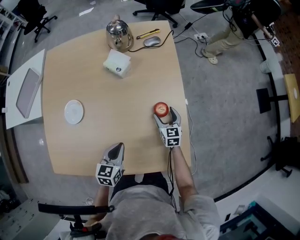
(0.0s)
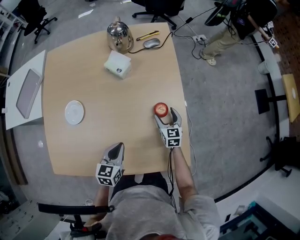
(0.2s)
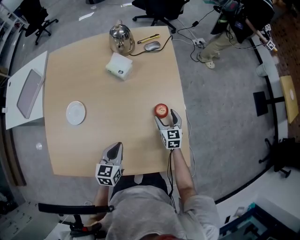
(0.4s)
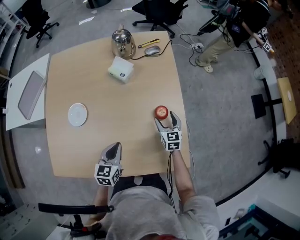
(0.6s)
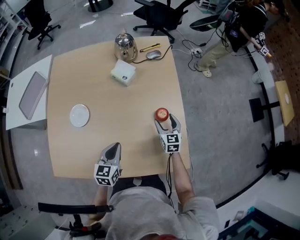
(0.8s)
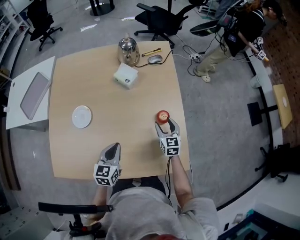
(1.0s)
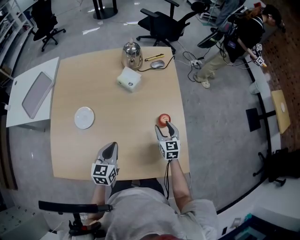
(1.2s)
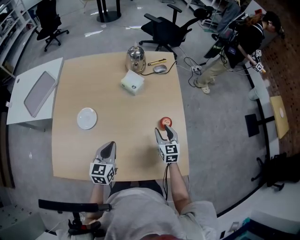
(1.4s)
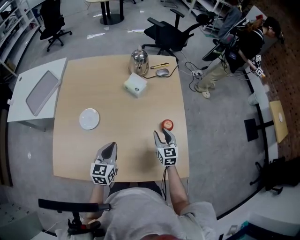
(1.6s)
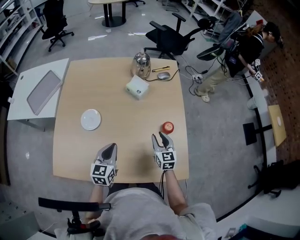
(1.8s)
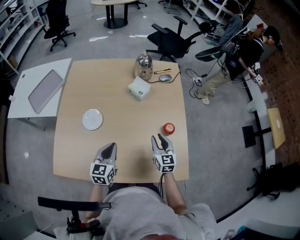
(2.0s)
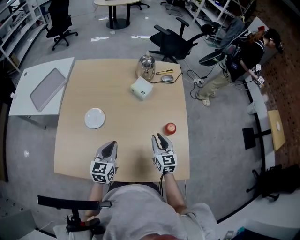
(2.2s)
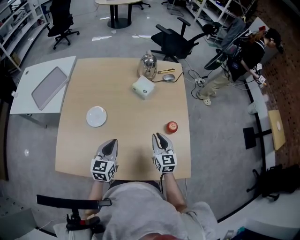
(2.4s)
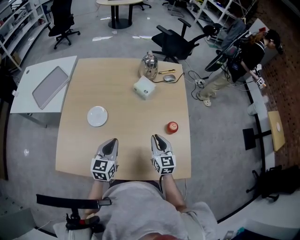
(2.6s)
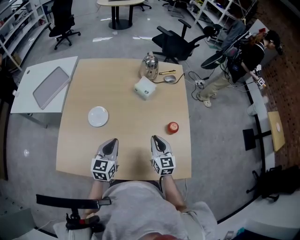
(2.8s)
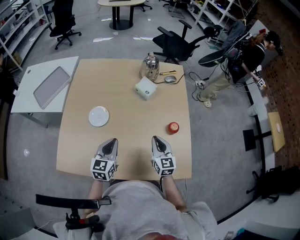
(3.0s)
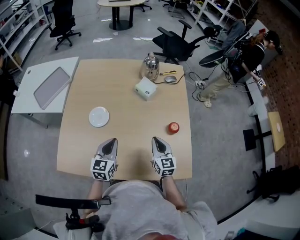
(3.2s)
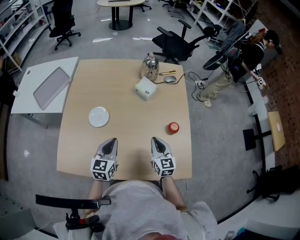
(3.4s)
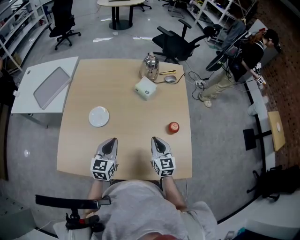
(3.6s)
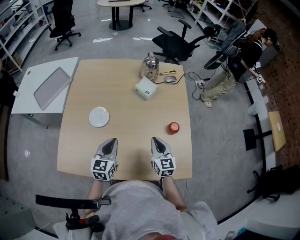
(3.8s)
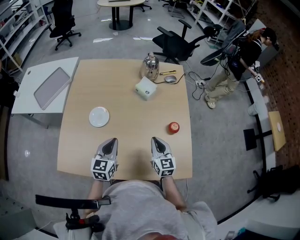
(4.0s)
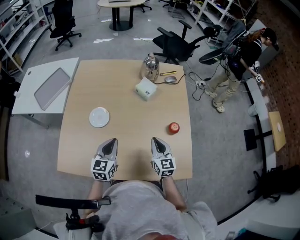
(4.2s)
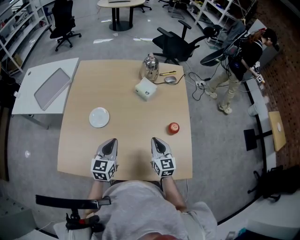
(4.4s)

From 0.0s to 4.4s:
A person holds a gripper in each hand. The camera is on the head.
From 0.0s to 1.4s: The left gripper shifts about 15 cm to the left and upward. The right gripper heads upward, to the left and backward, covering approximately 15 cm, and closes its fingers.
From 1.4s to 3.0s: The right gripper moves to the left, upward and backward, some 15 cm, and closes its fingers. Meanwhile the left gripper moves to the left, some 5 cm.
From 3.0s to 4.4s: Both grippers stay about where they are.

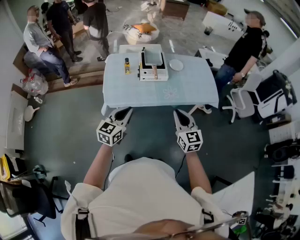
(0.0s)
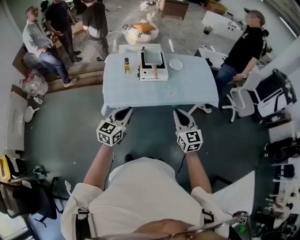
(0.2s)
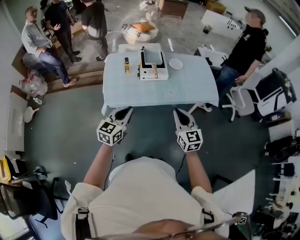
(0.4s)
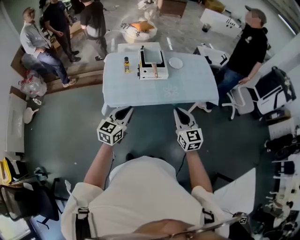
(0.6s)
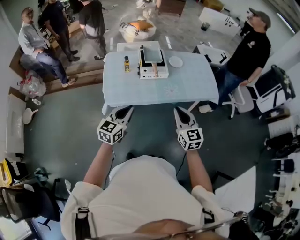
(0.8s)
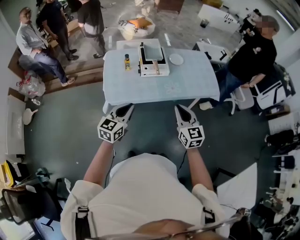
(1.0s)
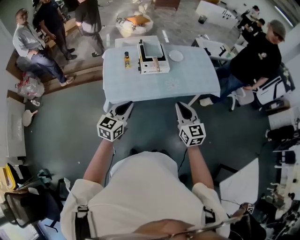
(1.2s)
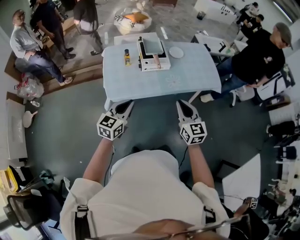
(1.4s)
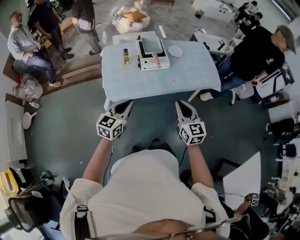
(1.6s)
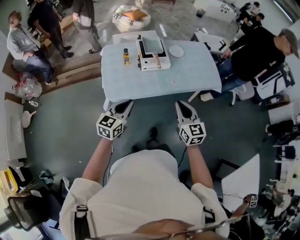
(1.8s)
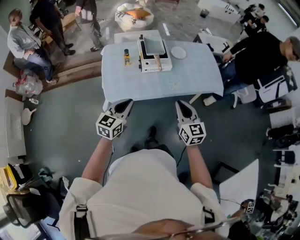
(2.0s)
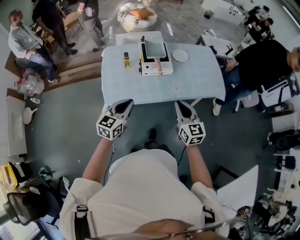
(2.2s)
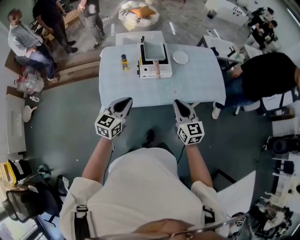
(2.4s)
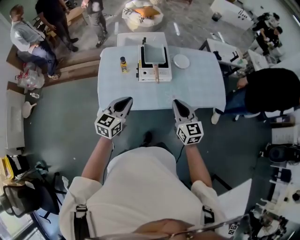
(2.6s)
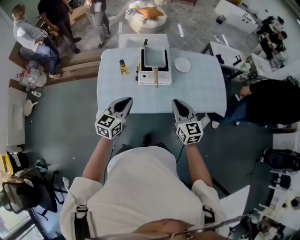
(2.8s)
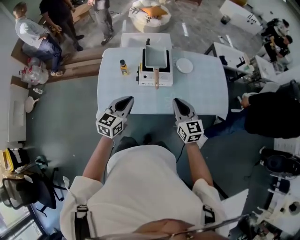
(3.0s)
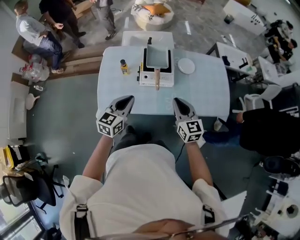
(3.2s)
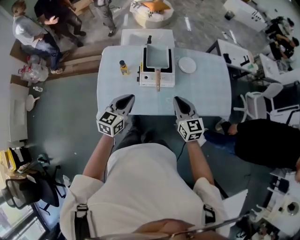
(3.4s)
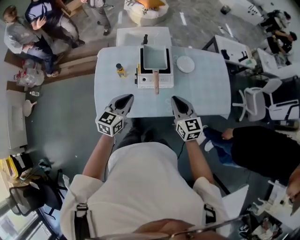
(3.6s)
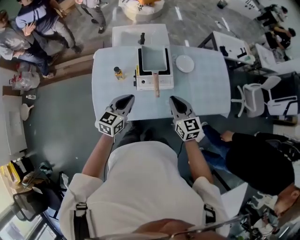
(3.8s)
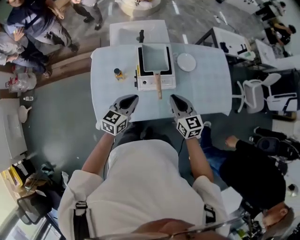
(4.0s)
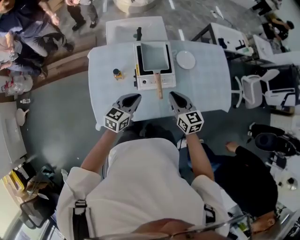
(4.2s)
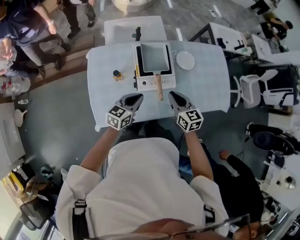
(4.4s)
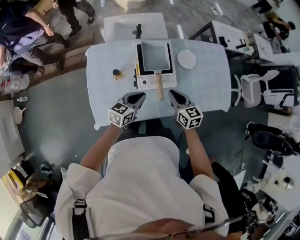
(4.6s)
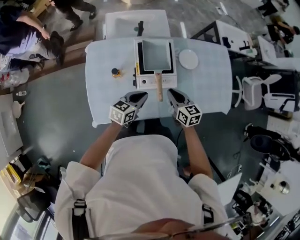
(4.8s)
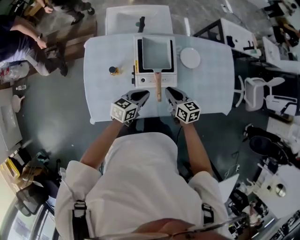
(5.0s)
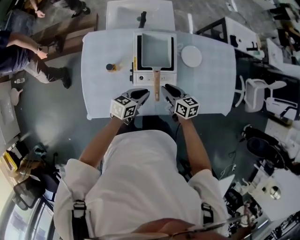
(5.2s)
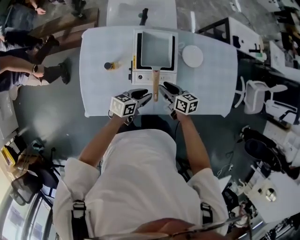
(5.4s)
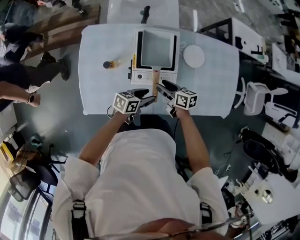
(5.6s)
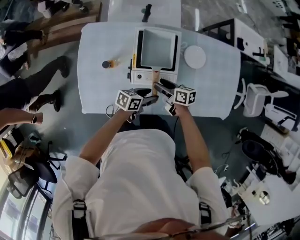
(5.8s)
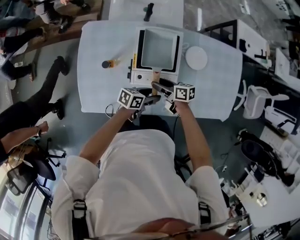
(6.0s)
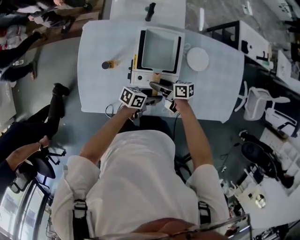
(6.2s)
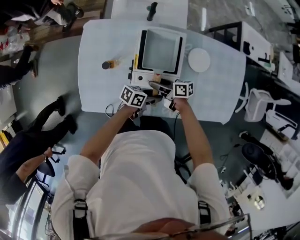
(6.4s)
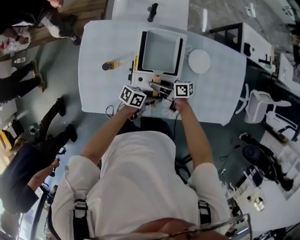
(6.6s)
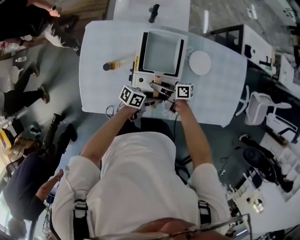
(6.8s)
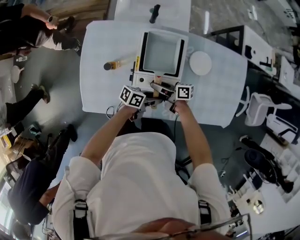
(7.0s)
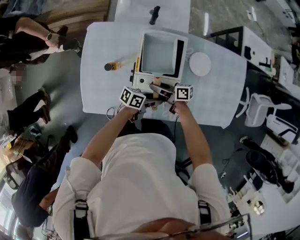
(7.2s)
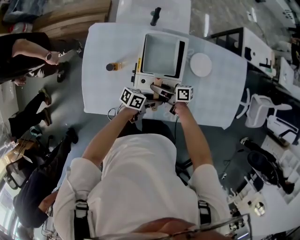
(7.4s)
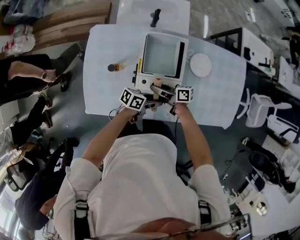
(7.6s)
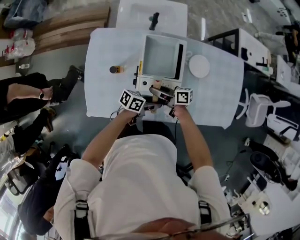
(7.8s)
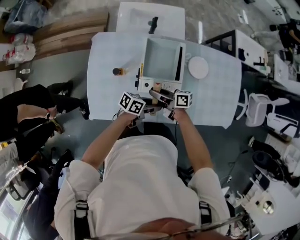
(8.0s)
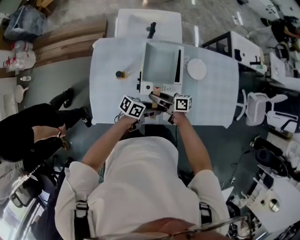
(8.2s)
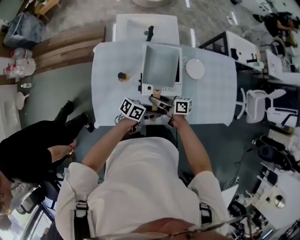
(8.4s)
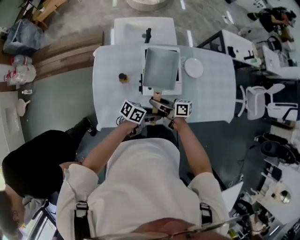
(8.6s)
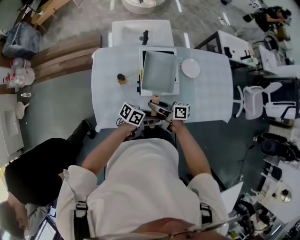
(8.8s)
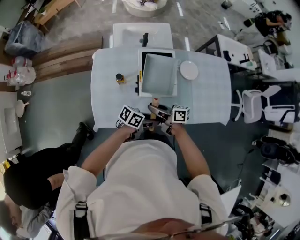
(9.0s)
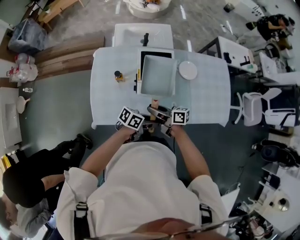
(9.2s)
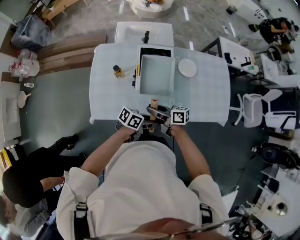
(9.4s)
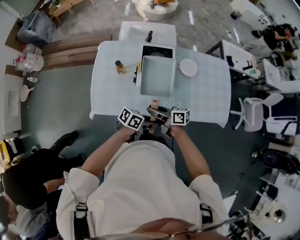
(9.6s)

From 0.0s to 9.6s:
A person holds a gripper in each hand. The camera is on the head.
From 0.0s to 1.6s: The two grippers go some 5 cm to the left.
From 1.6s to 3.2s: Both grippers travel together forward, roughly 25 cm.
From 3.2s to 4.8s: The left gripper goes about 25 cm forward and downward, and rotates roughly 30 degrees. The right gripper travels forward, downward and to the left by roughly 25 cm, and swivels approximately 20 degrees.
From 4.8s to 6.4s: The grippers both shift downward by roughly 15 cm. The right gripper swivels some 50 degrees, and opens up; the left gripper turns by roughly 40 degrees, and opens up.
From 6.4s to 8.0s: The two grippers go about 5 cm upward.
From 8.0s to 9.6s: The right gripper ends up roughly 20 cm from where it was. The left gripper shifts by about 20 cm.

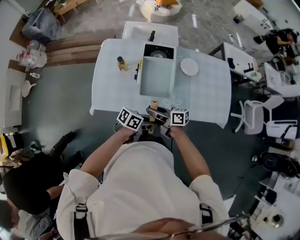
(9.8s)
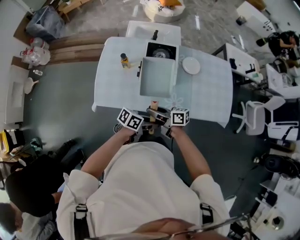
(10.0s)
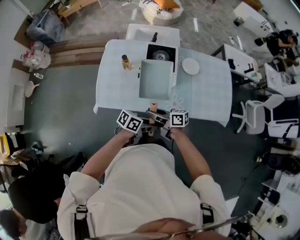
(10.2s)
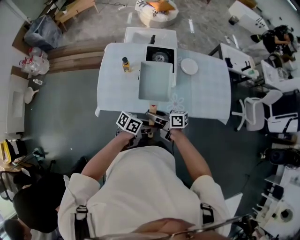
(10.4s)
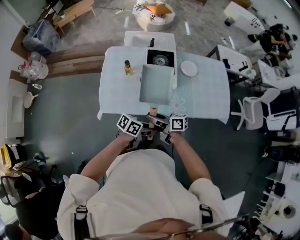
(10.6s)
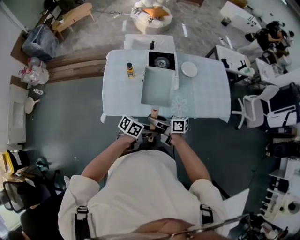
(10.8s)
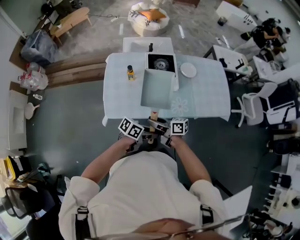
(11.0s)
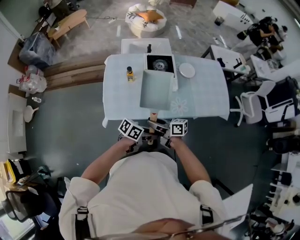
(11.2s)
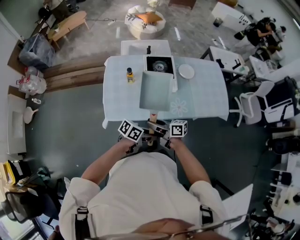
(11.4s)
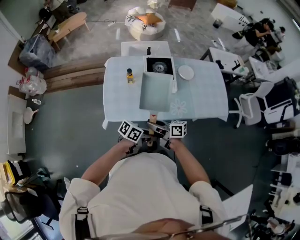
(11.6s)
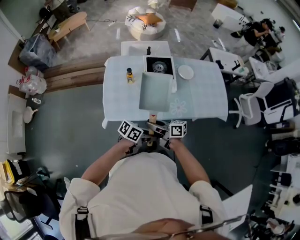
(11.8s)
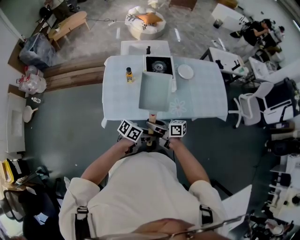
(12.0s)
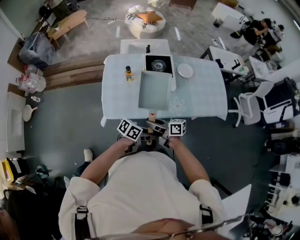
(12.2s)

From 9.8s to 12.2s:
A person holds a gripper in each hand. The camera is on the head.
From 9.8s to 11.0s: The left gripper shifts by about 15 cm; the right gripper ends up some 15 cm from where it was.
From 11.0s to 12.2s: The grippers move only a little.

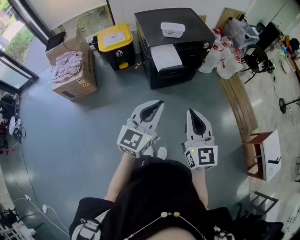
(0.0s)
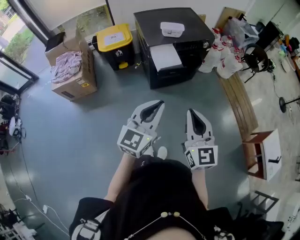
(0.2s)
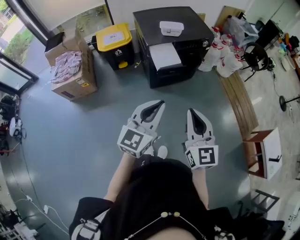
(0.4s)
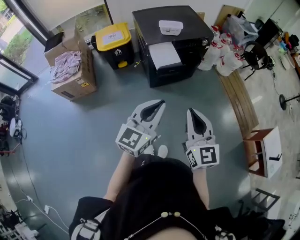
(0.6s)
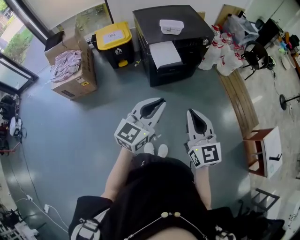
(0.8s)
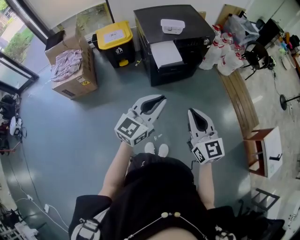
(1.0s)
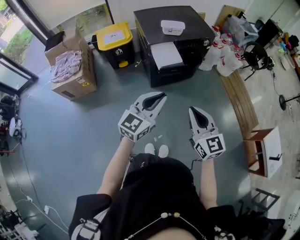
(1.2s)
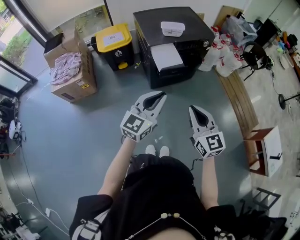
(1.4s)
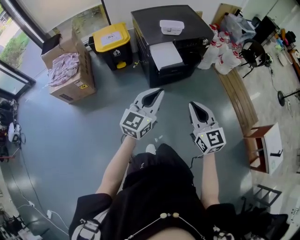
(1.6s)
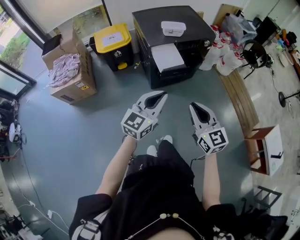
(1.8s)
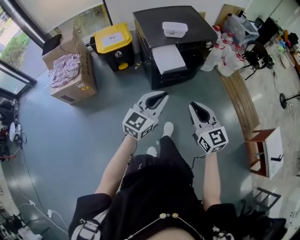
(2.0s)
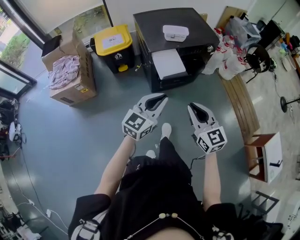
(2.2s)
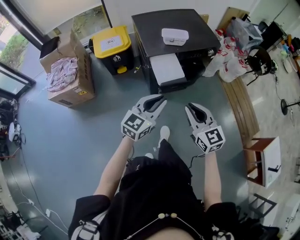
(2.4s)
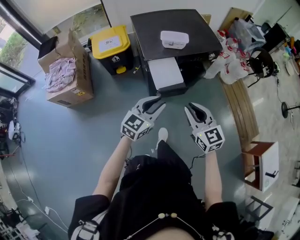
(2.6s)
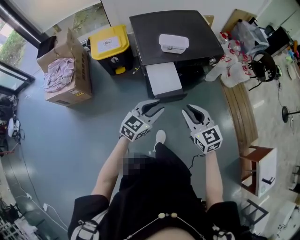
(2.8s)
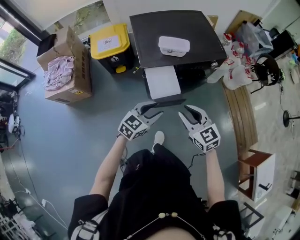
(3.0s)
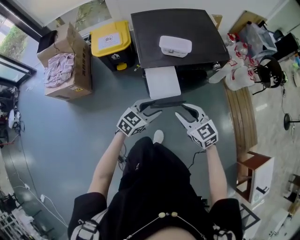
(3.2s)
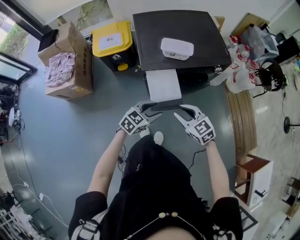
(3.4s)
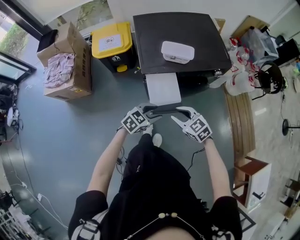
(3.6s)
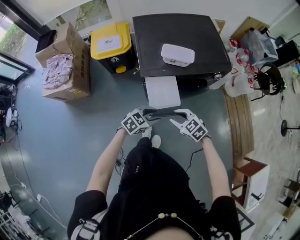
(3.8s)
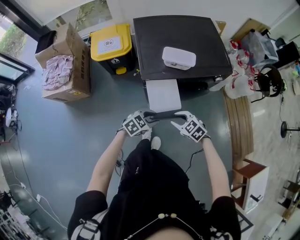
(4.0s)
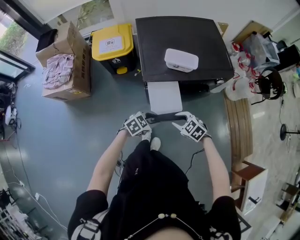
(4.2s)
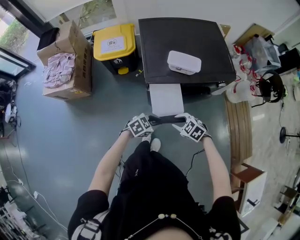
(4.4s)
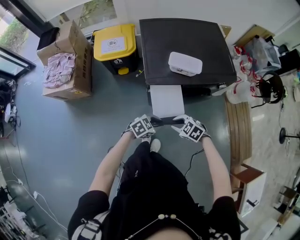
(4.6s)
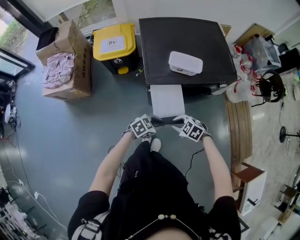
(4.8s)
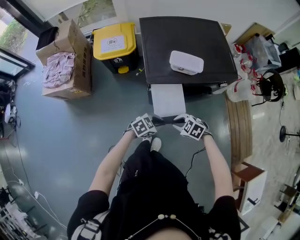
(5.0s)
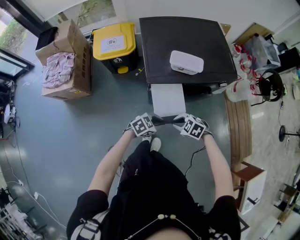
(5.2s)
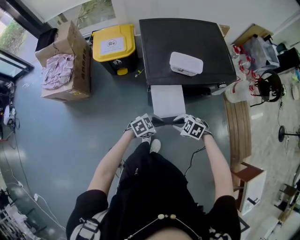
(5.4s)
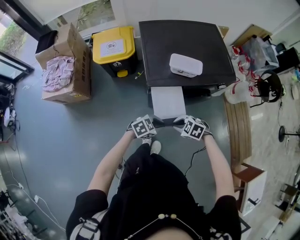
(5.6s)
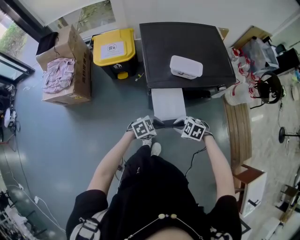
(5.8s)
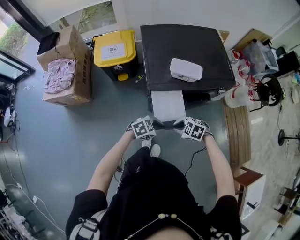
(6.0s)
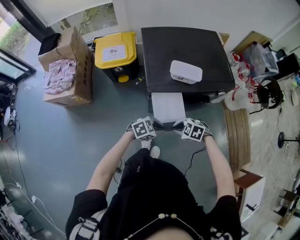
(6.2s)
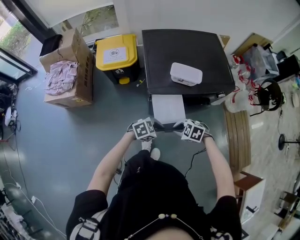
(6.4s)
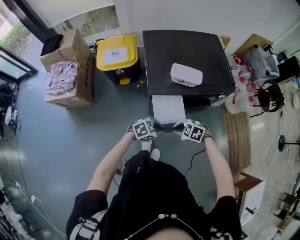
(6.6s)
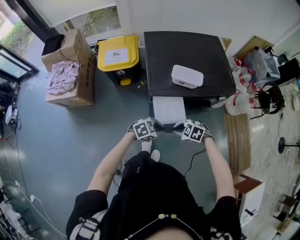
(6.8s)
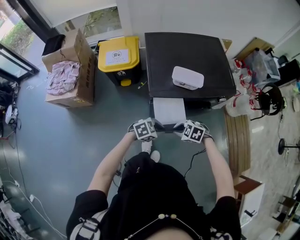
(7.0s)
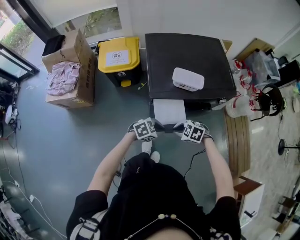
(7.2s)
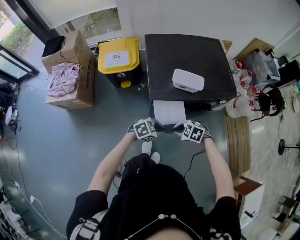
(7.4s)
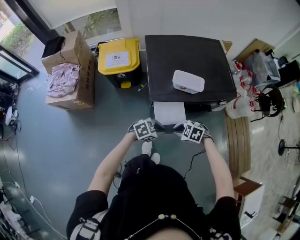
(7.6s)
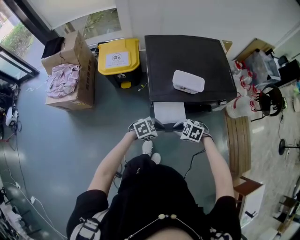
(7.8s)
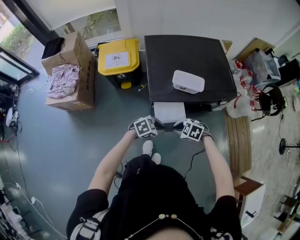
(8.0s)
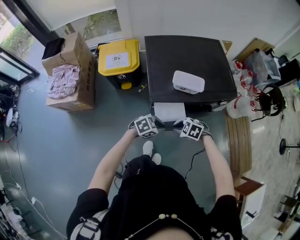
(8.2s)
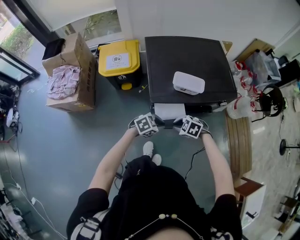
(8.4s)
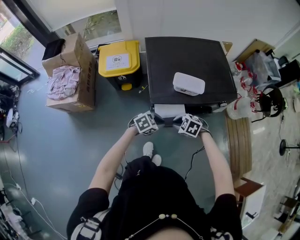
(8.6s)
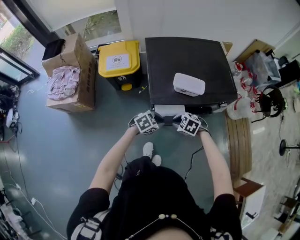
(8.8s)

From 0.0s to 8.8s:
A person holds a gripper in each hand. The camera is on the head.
From 0.0s to 1.4s: The right gripper travels downward by about 5 cm. Meanwhile the left gripper moves some 5 cm.
From 1.4s to 3.0s: The right gripper shifts roughly 25 cm forward, swivels about 20 degrees, and opens. Meanwhile the left gripper is displaced forward and downward by approximately 25 cm, rotates approximately 20 degrees, and opens its fingers.
From 3.0s to 4.4s: Both grippers move downward, about 15 cm. The left gripper rotates some 30 degrees, while the right gripper points its fingers about 30 degrees further downward.
From 4.4s to 7.4s: The grippers make only small movements.
From 7.4s to 8.8s: The left gripper changes place by approximately 5 cm; the right gripper ends up some 5 cm from where it was.
